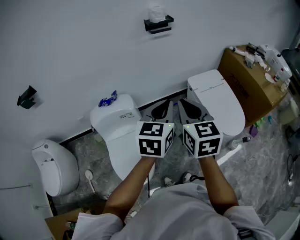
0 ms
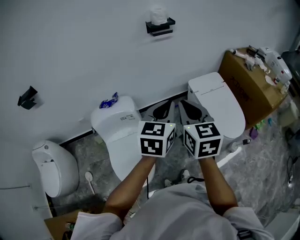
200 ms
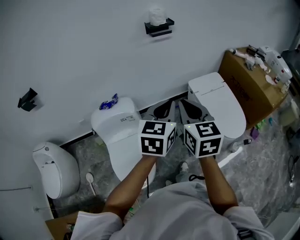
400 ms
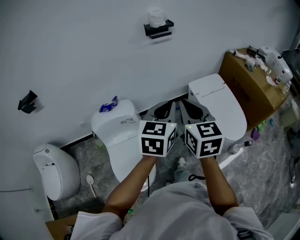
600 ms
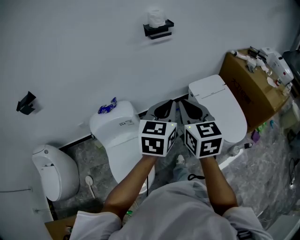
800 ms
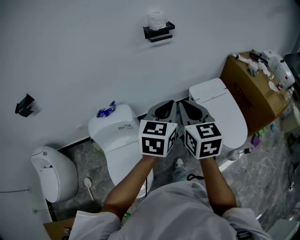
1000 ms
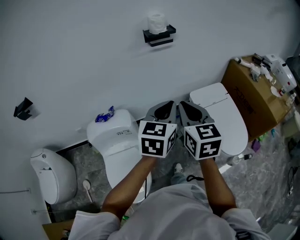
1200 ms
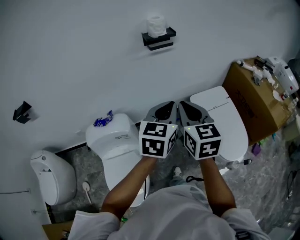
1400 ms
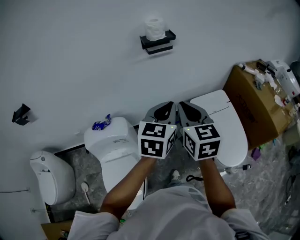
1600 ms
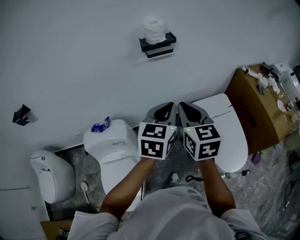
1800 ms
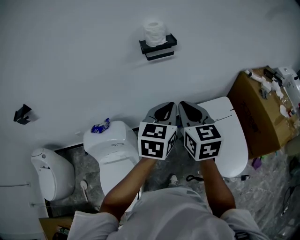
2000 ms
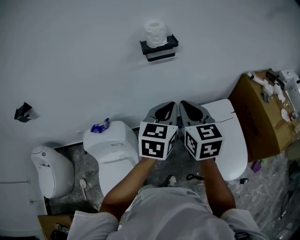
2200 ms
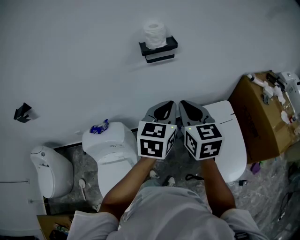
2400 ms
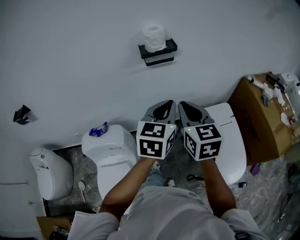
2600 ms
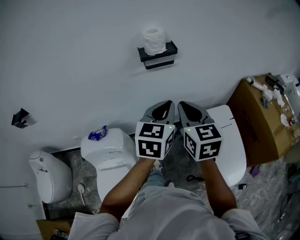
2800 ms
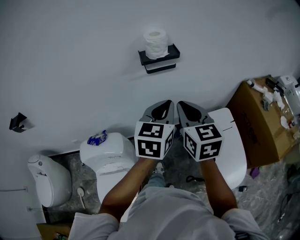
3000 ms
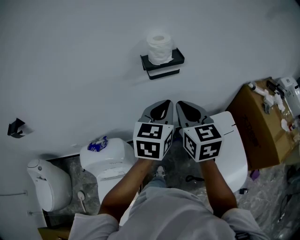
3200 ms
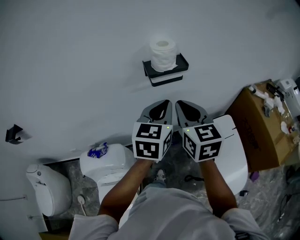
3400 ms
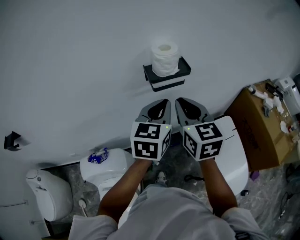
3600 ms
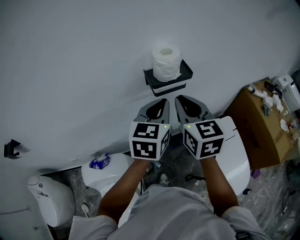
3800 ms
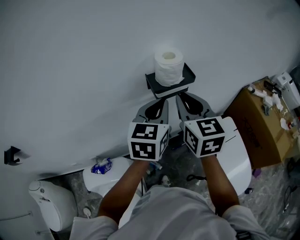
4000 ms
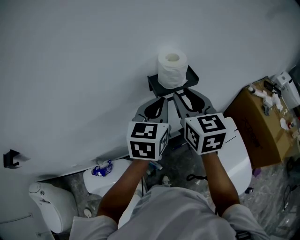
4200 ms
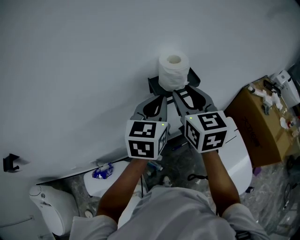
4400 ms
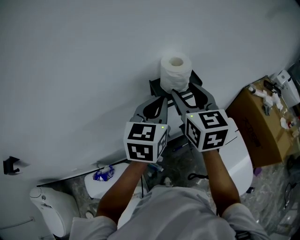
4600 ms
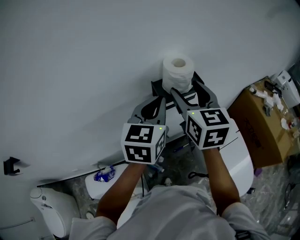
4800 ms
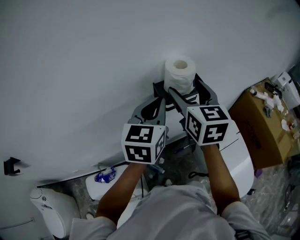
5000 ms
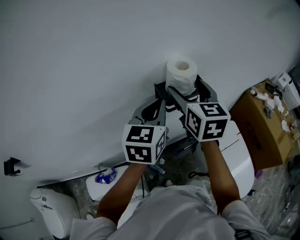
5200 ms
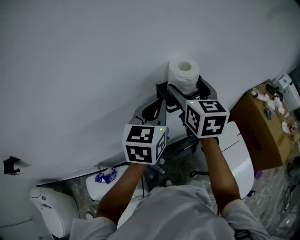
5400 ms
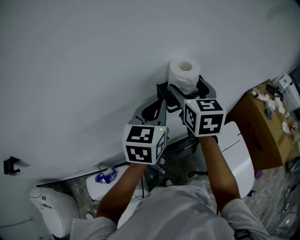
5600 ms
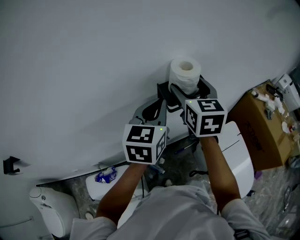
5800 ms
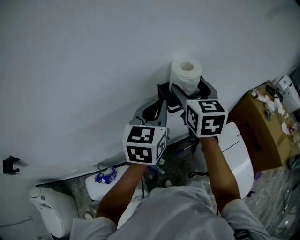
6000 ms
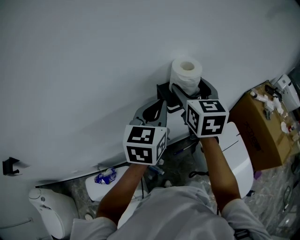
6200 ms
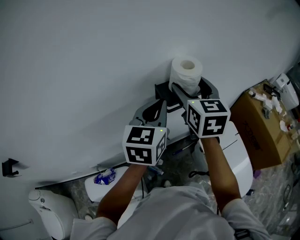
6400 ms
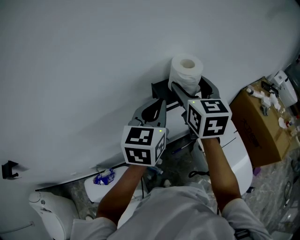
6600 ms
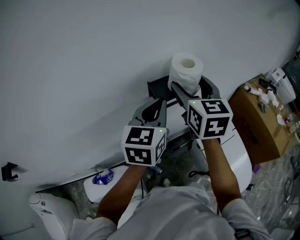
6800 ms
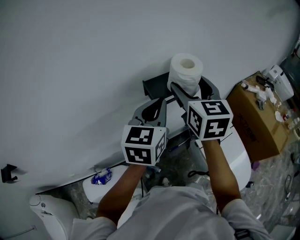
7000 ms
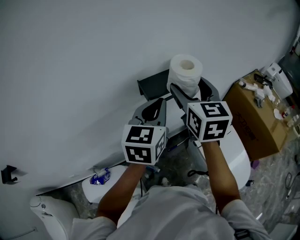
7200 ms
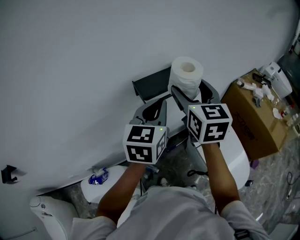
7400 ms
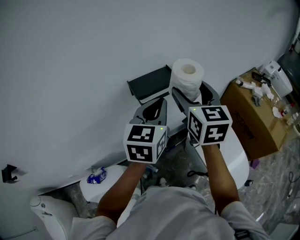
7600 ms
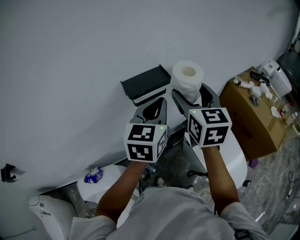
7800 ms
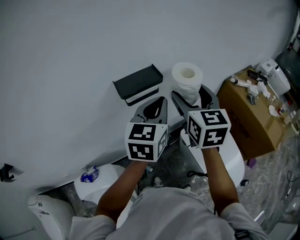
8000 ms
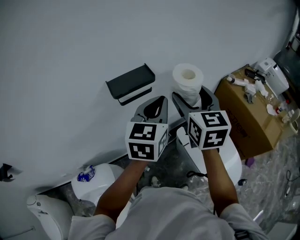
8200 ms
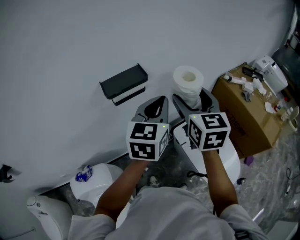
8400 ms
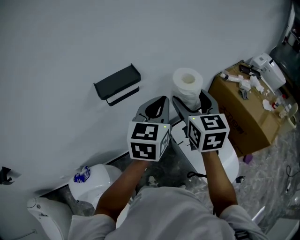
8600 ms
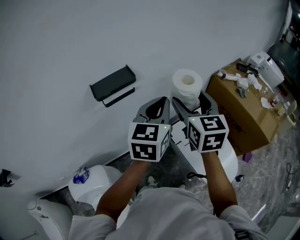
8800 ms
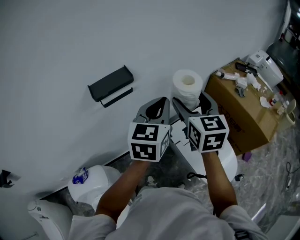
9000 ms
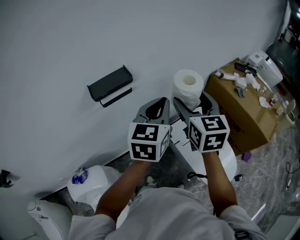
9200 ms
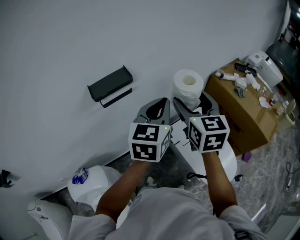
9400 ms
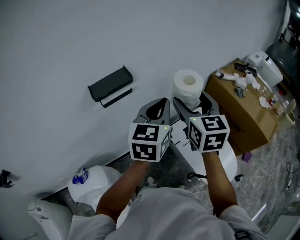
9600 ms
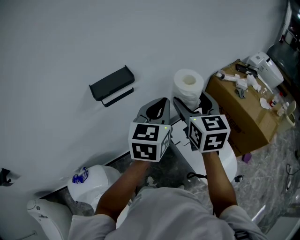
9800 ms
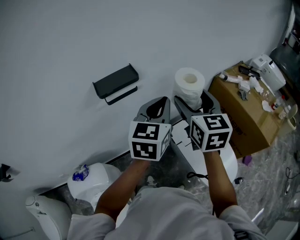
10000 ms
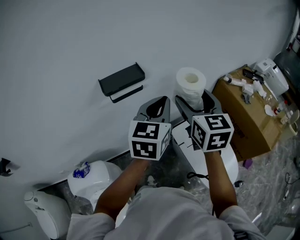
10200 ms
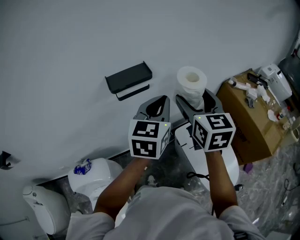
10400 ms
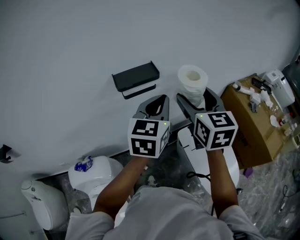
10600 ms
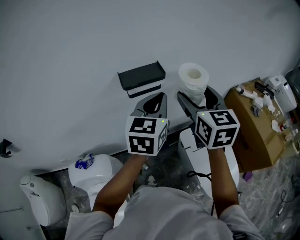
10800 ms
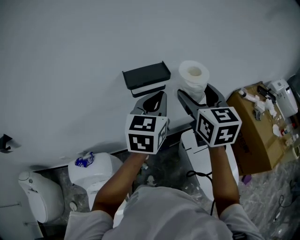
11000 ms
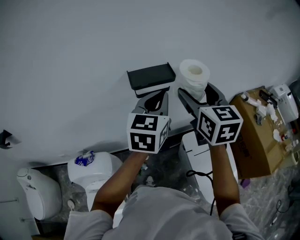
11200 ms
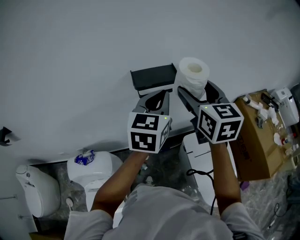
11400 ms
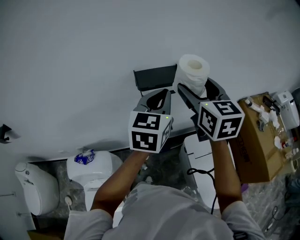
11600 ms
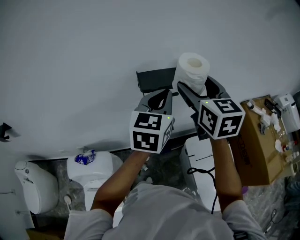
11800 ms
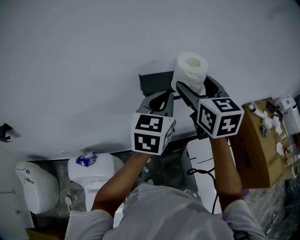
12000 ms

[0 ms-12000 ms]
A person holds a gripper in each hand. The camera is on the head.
0 ms to 1600 ms: Both grippers travel together forward, some 20 cm.
1600 ms to 3000 ms: The two grippers go approximately 15 cm forward.
3000 ms to 4400 ms: Both grippers move forward and to the left, about 20 cm. The right gripper opens up.
4400 ms to 6000 ms: The right gripper travels forward by approximately 5 cm, and opens its fingers.
6000 ms to 7600 ms: The right gripper shifts about 15 cm to the right and backward, while the left gripper is displaced to the right by approximately 10 cm.
7600 ms to 9000 ms: Both grippers travel together to the right, roughly 15 cm.
9000 ms to 10400 ms: The right gripper shifts by approximately 5 cm, while the left gripper heads to the left, covering roughly 5 cm.
10400 ms to 12000 ms: The two grippers go about 15 cm to the left and forward.

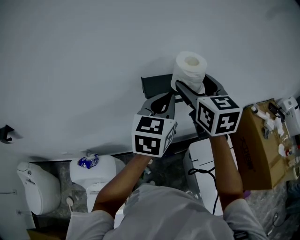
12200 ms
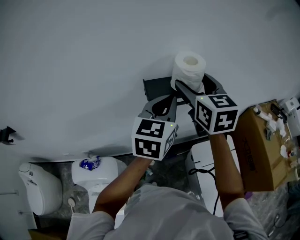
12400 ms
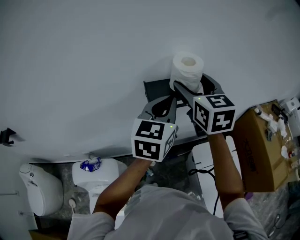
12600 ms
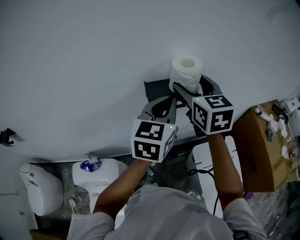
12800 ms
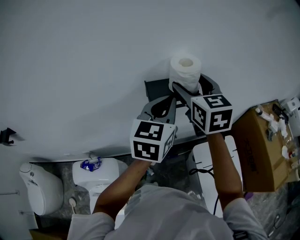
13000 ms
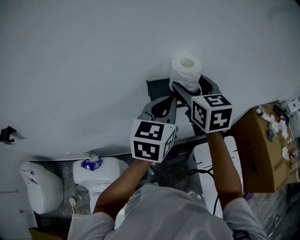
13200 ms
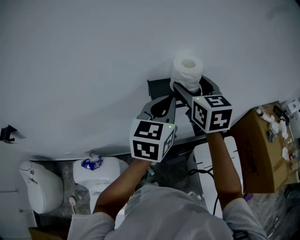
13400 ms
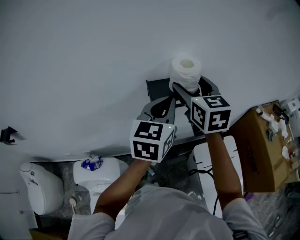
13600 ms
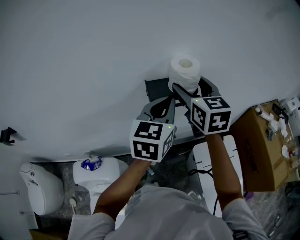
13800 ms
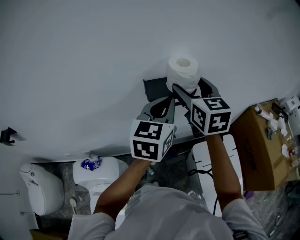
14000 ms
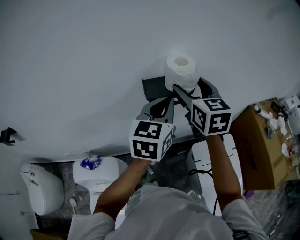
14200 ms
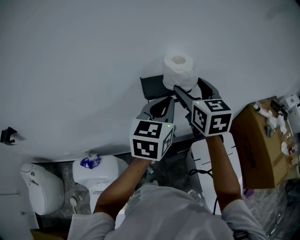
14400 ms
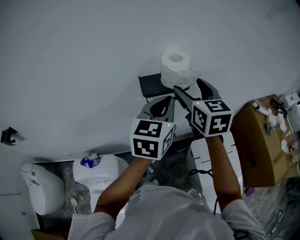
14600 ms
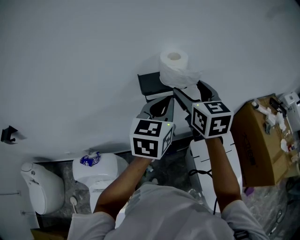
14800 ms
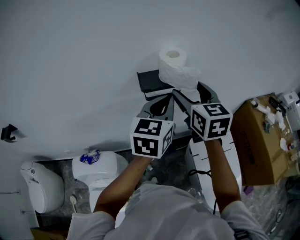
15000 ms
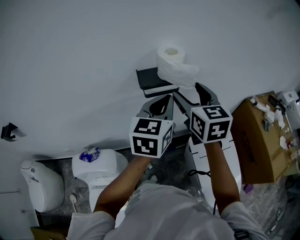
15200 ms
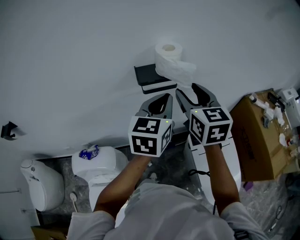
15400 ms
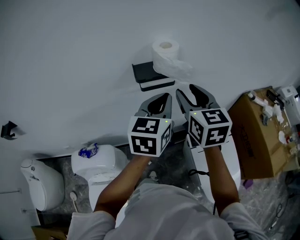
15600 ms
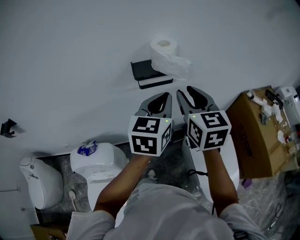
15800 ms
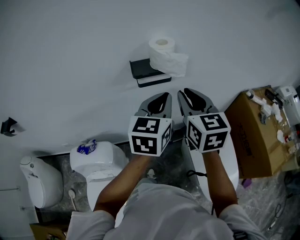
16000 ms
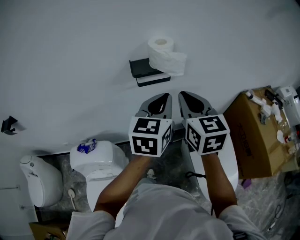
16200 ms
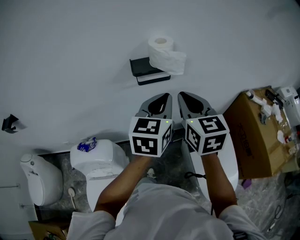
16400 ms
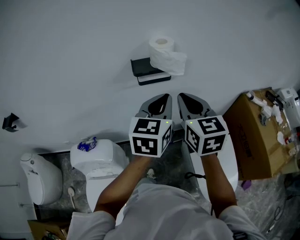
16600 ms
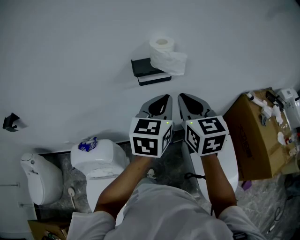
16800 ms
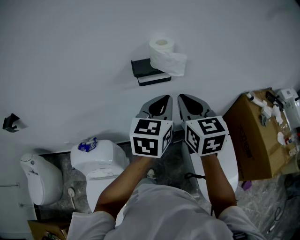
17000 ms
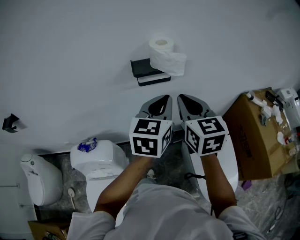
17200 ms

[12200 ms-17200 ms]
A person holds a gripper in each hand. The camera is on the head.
12200 ms to 13800 ms: The grippers make only small movements.
13800 ms to 15600 ms: The right gripper moves backward, roughly 10 cm, and closes up, while the left gripper moves backward, about 5 cm.
15600 ms to 17200 ms: The right gripper shifts some 5 cm backward, and closes up.

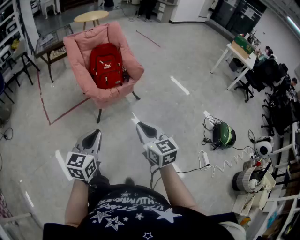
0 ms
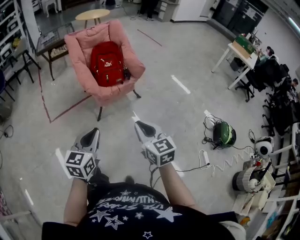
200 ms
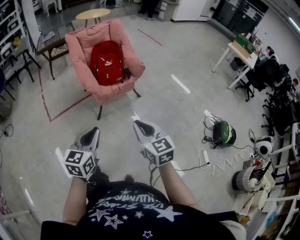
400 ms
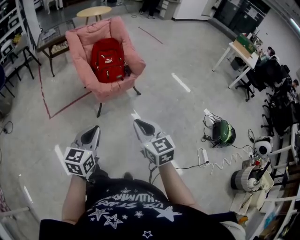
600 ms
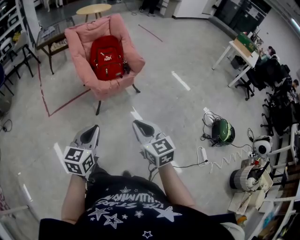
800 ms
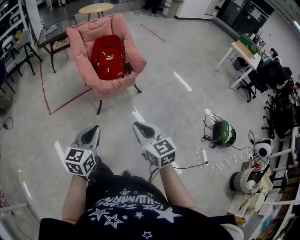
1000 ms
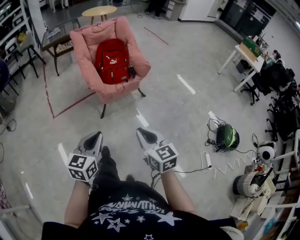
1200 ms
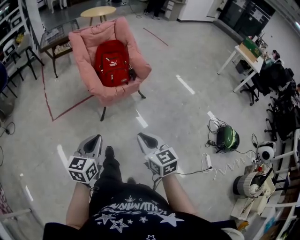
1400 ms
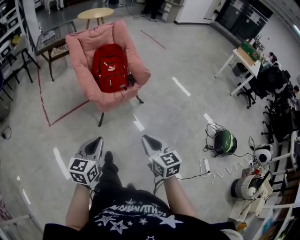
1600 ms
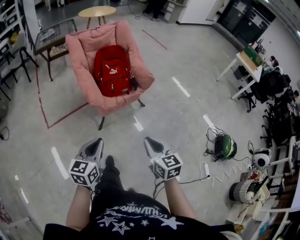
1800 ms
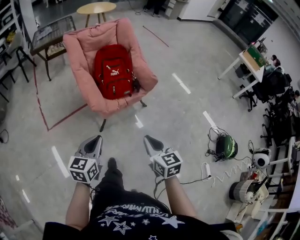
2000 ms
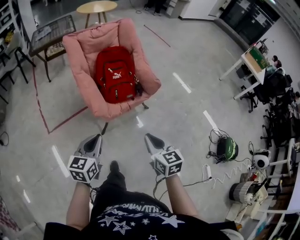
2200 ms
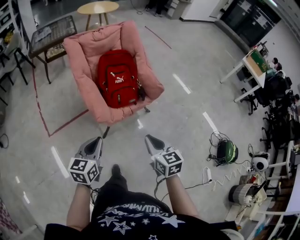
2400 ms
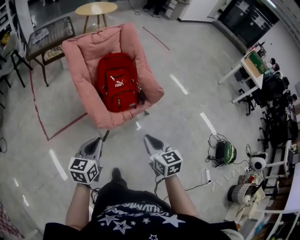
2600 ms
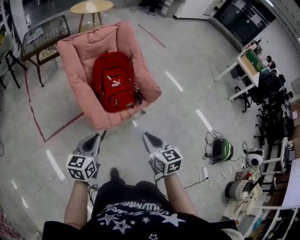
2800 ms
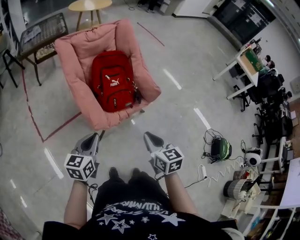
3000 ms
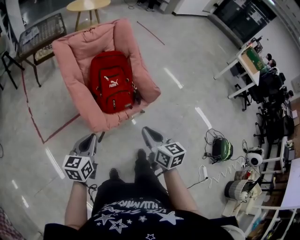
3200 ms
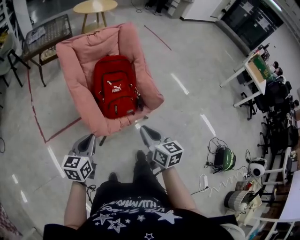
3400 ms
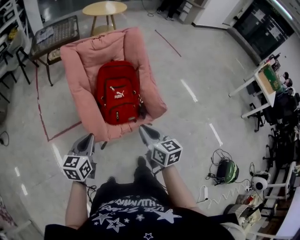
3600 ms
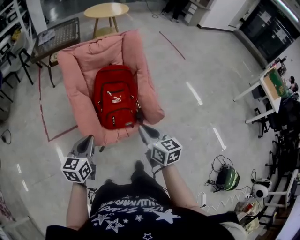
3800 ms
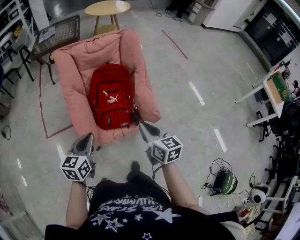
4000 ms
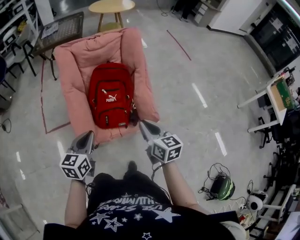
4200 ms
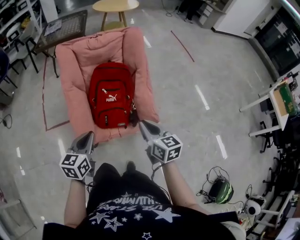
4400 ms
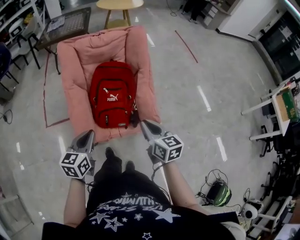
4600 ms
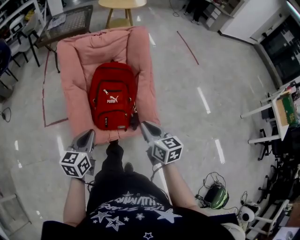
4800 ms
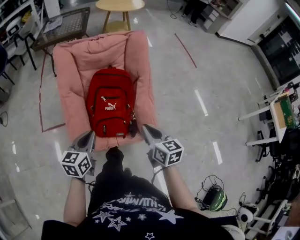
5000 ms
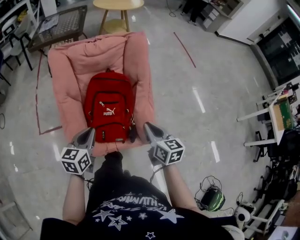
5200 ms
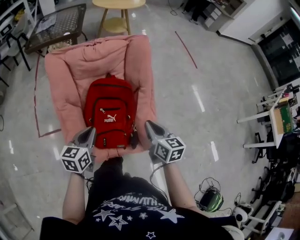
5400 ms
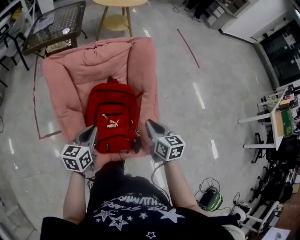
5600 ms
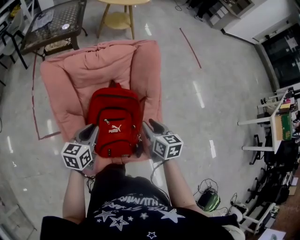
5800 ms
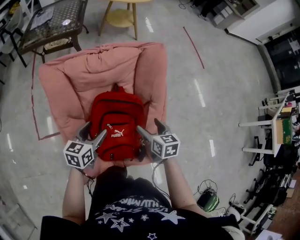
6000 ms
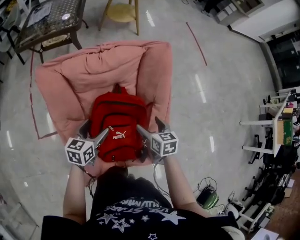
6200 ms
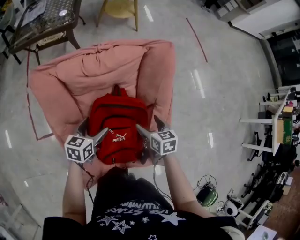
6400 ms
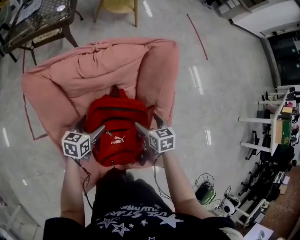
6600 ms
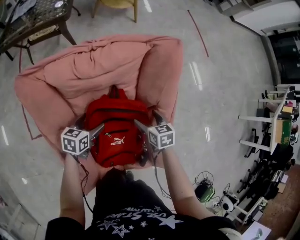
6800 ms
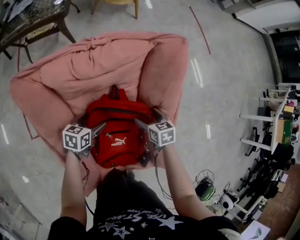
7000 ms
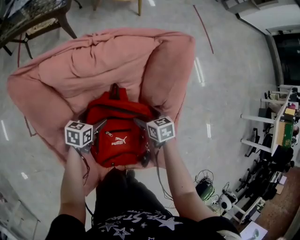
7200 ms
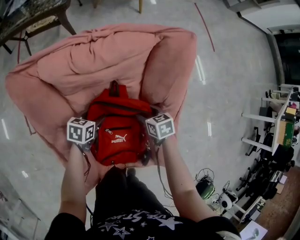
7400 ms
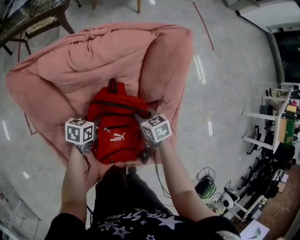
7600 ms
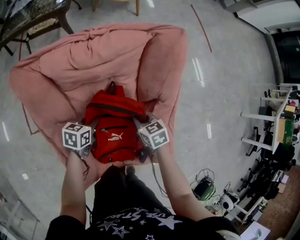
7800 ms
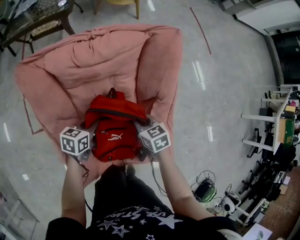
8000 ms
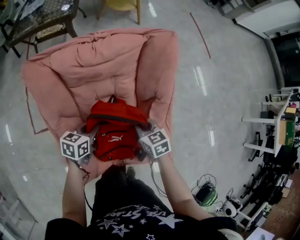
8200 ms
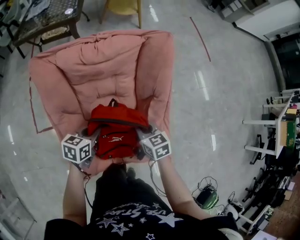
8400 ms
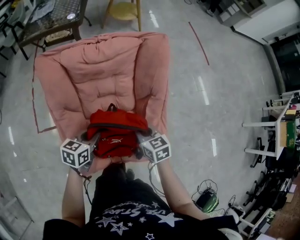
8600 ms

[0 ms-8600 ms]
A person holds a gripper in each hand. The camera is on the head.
0 ms to 1400 ms: There are only small adjustments of the grippers.
1400 ms to 2800 ms: The left gripper goes approximately 40 cm forward and to the left; the right gripper goes about 35 cm forward.
2800 ms to 4400 ms: The left gripper is displaced to the right and forward by some 25 cm, and rotates about 20 degrees, while the right gripper is displaced forward and to the right by approximately 35 cm, and rotates approximately 20 degrees.
4400 ms to 5800 ms: Both grippers move forward, roughly 30 cm.
5800 ms to 7200 ms: Both grippers move downward and forward, approximately 30 cm. The left gripper rotates about 20 degrees, and opens its fingers. Meanwhile the right gripper rotates about 20 degrees, and opens its fingers.
7200 ms to 8600 ms: Both grippers travel together upward and backward, about 25 cm. The right gripper closes. The left gripper closes its fingers.
